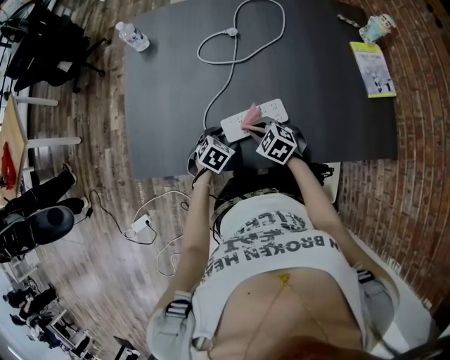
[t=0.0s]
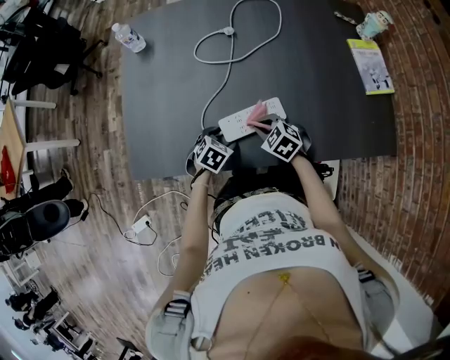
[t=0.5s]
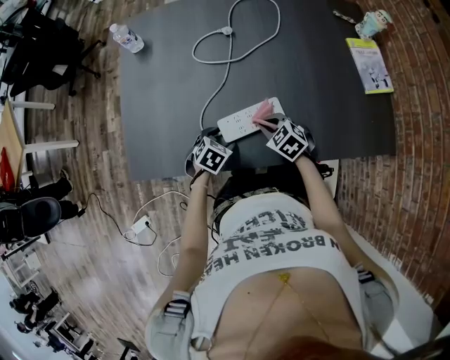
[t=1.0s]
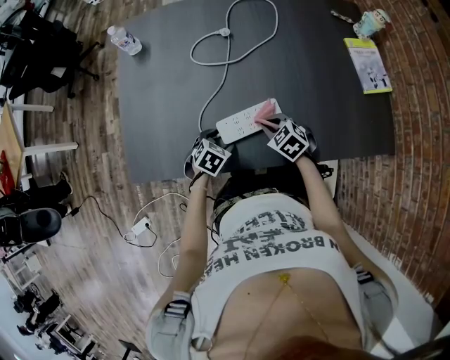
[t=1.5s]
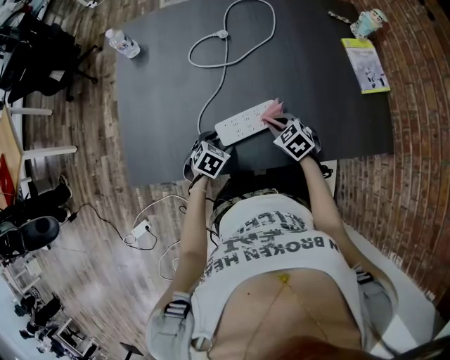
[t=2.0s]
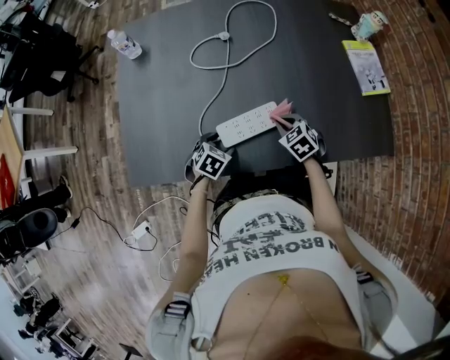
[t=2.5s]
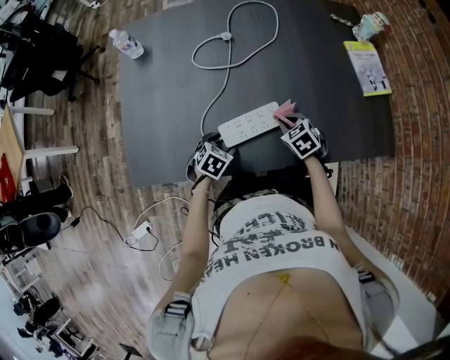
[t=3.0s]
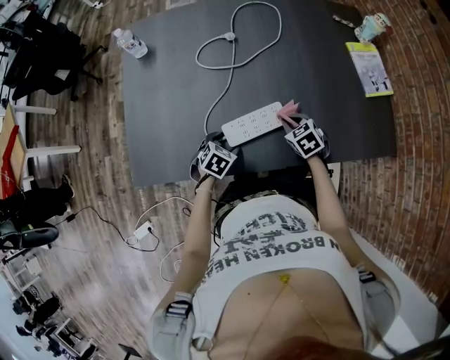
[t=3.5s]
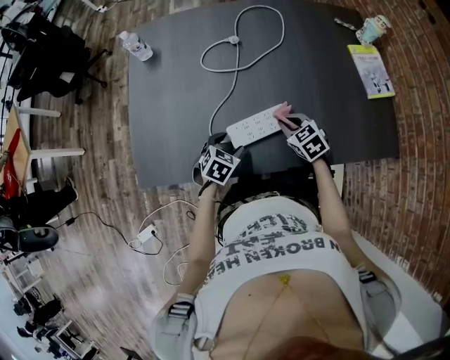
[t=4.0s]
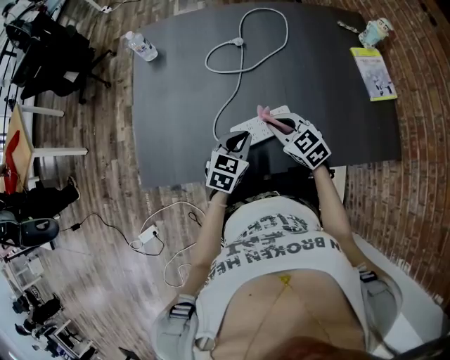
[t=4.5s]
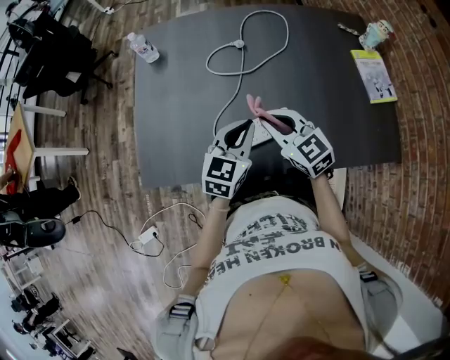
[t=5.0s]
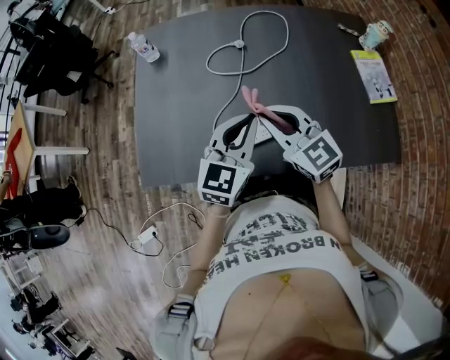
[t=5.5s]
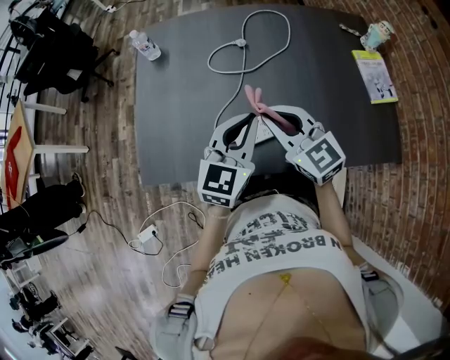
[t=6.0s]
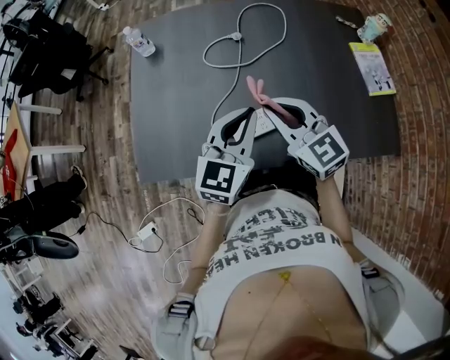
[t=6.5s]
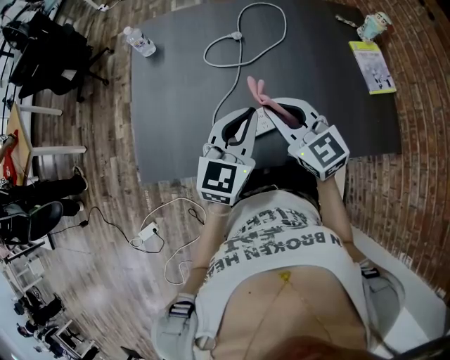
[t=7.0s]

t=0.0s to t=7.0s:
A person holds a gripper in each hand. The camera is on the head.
t=0.0s to t=2.0s: The right gripper goes about 10 cm to the right.
t=2.0s to t=3.5s: The grippers make only small movements.
t=3.5s to t=5.0s: The right gripper shifts roughly 25 cm upward and to the left, and tips its fingers upward by some 40 degrees. Meanwhile the left gripper moves upward, about 25 cm, tips its fingers upward by about 40 degrees, and closes up.
t=5.0s to t=7.0s: The two grippers go some 5 cm upward.

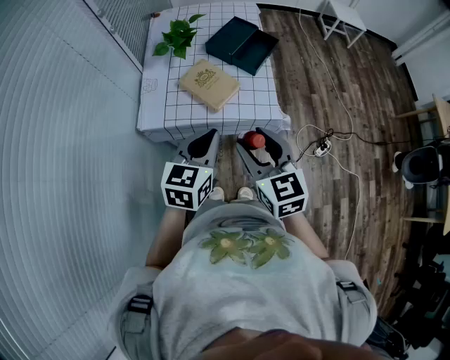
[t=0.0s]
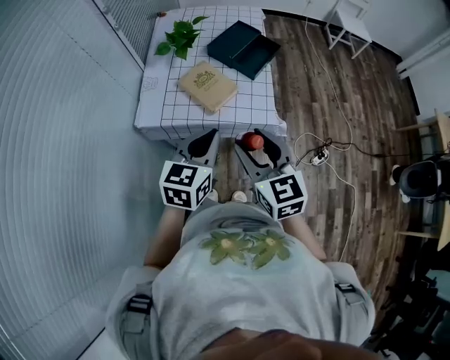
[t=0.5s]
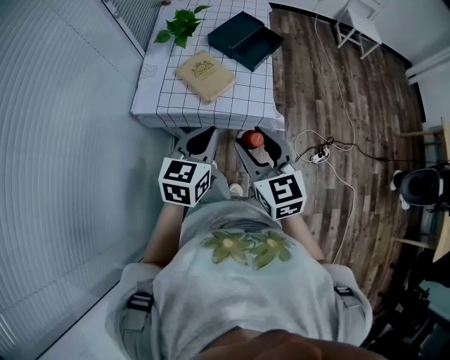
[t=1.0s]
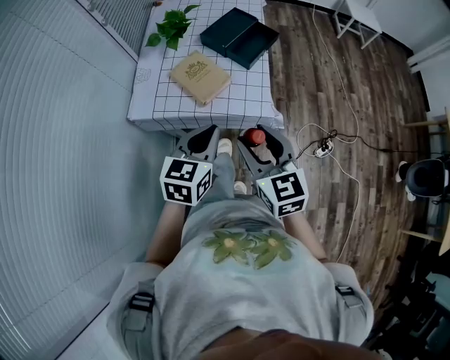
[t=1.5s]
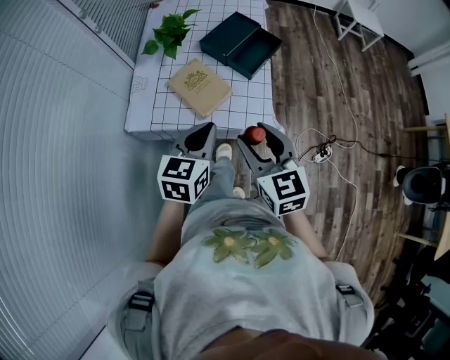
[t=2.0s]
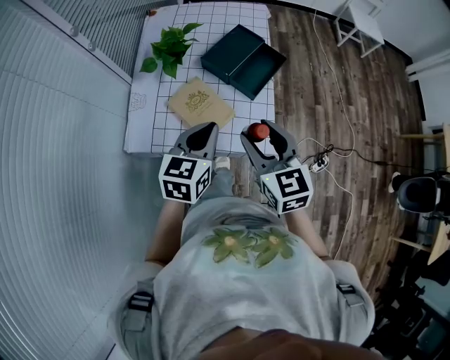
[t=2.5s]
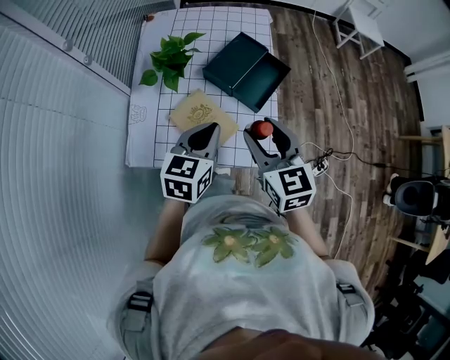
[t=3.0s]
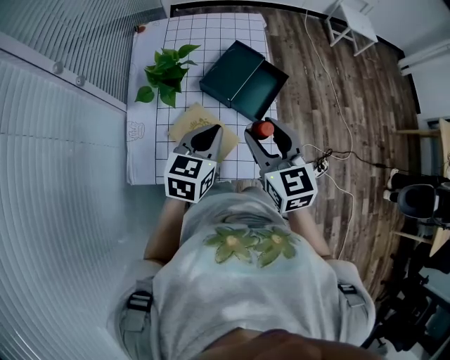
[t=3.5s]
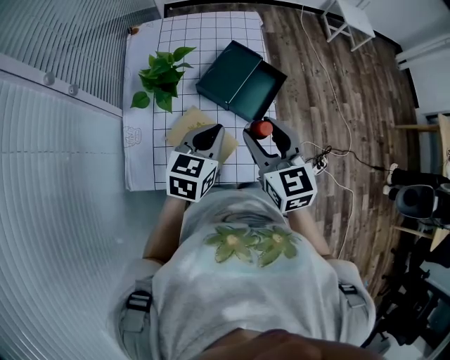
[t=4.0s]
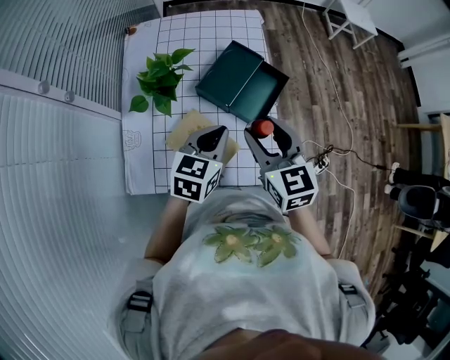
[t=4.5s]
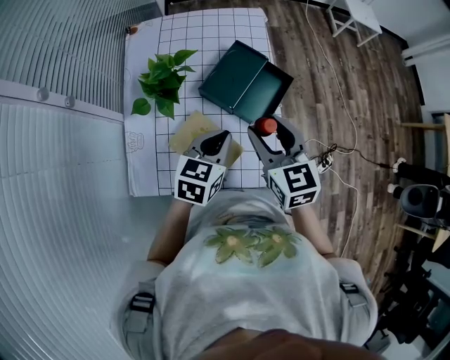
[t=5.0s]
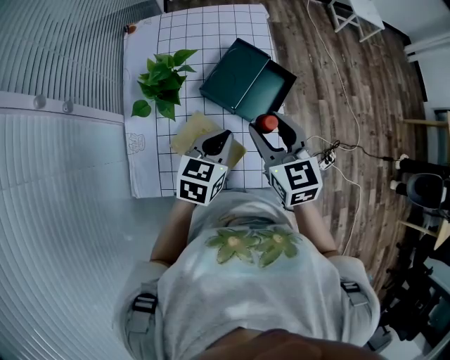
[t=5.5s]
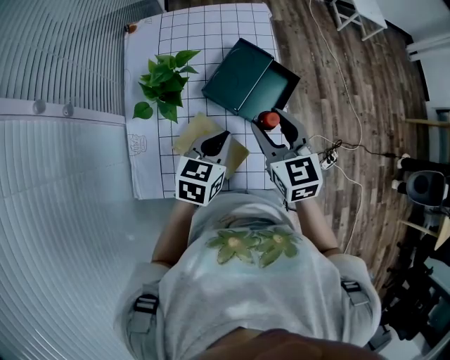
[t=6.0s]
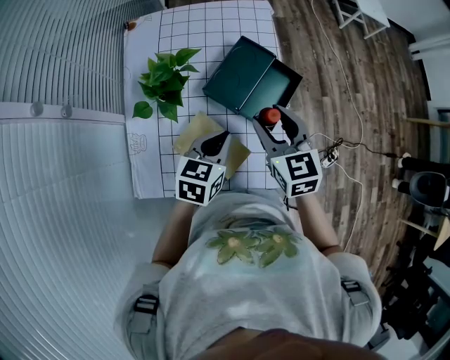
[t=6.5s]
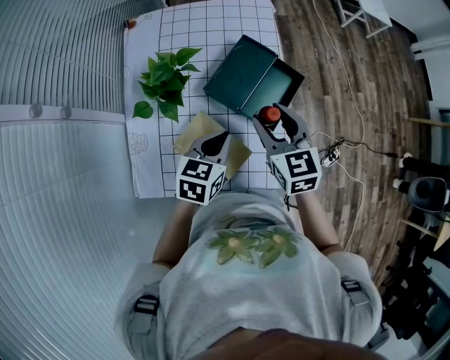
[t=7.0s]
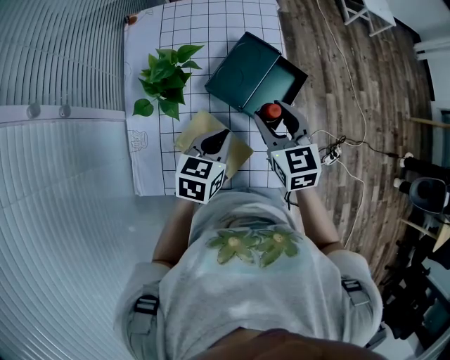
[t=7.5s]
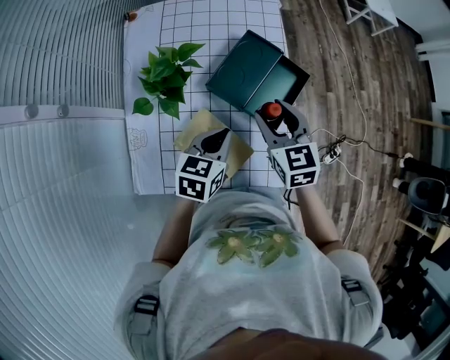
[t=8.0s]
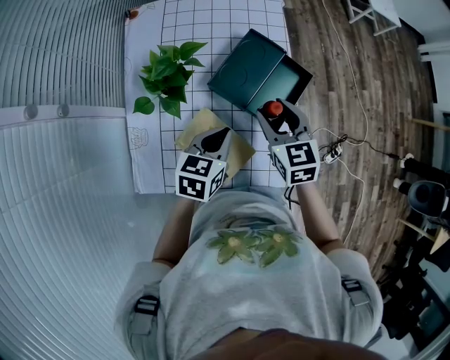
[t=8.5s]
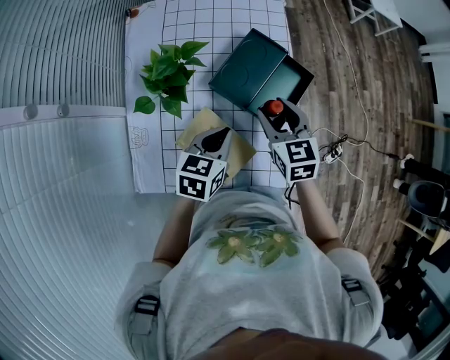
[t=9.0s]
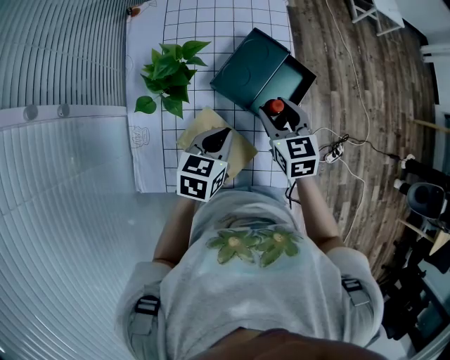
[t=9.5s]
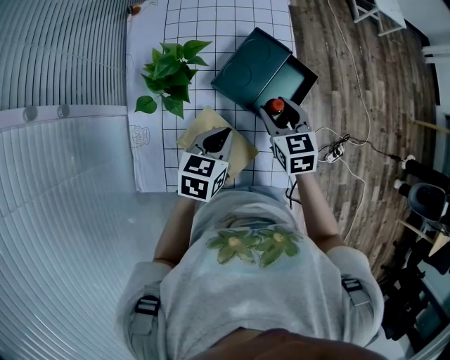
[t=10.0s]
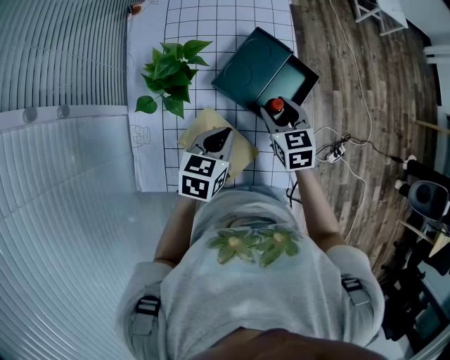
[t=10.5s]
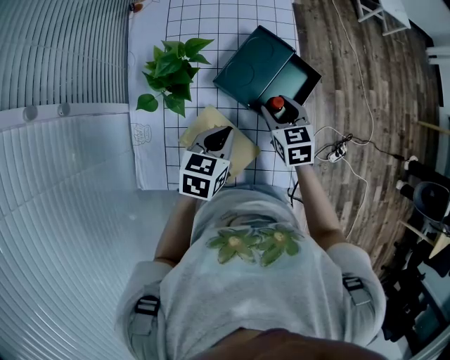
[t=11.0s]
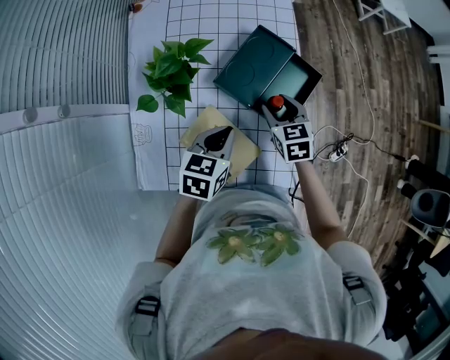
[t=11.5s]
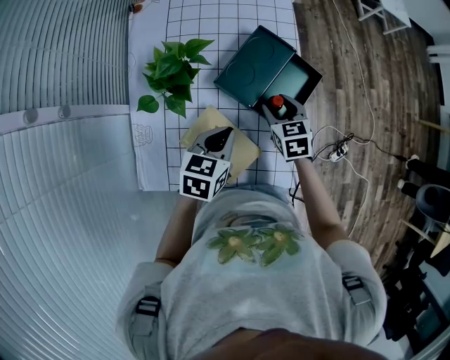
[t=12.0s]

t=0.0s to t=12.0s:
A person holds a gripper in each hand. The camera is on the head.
t=0.0s to t=2.0s: The grippers both shift forward and to the right by roughly 10 cm.
t=2.0s to t=4.0s: The grippers both shift forward by about 25 cm.
t=4.0s to t=6.0s: The right gripper shifts some 10 cm forward. Meanwhile the left gripper is displaced downward by some 5 cm.
t=6.0s to t=8.0s: The right gripper is displaced downward by roughly 5 cm.
t=8.0s to t=10.0s: The right gripper moves downward, approximately 5 cm.
t=10.0s to t=12.0s: The right gripper shifts some 5 cm downward.

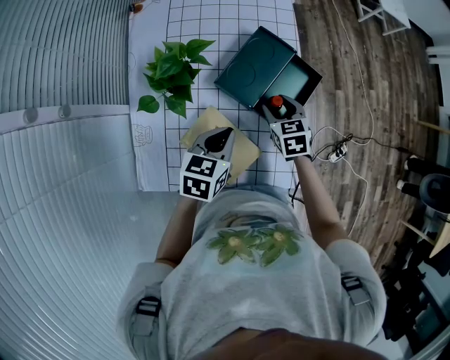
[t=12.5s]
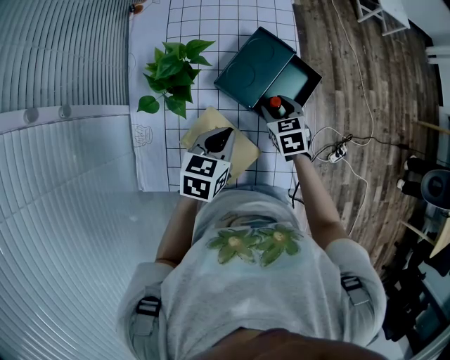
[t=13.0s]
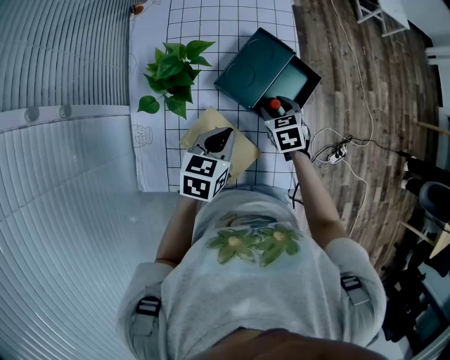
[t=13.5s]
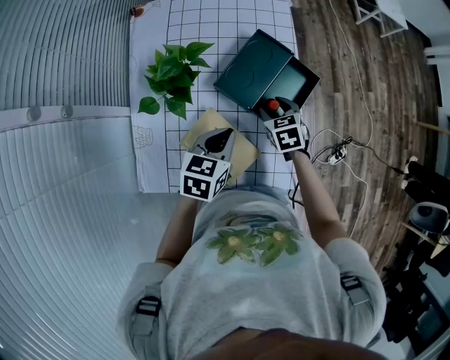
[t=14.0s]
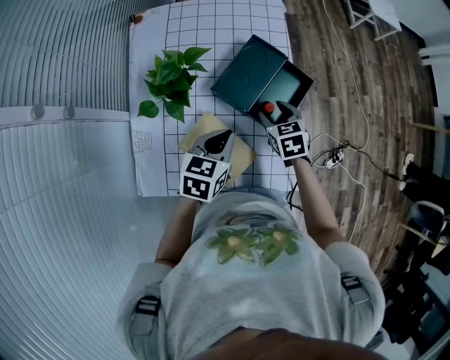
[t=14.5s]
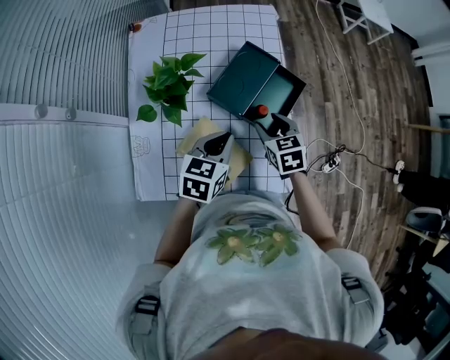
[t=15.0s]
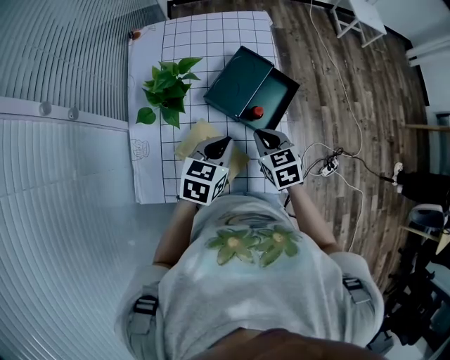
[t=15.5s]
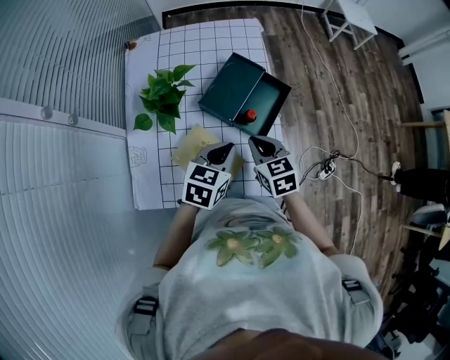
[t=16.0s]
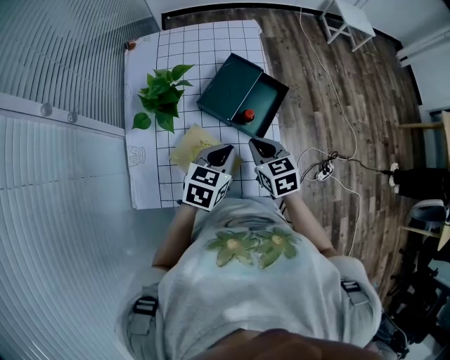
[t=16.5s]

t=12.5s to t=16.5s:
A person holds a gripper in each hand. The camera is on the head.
t=12.5s to t=14.5s: The grippers stay close to where they were, moving slightly.
t=14.5s to t=16.5s: The left gripper shifts about 5 cm to the right, while the right gripper goes some 10 cm backward and upward, and closes up.

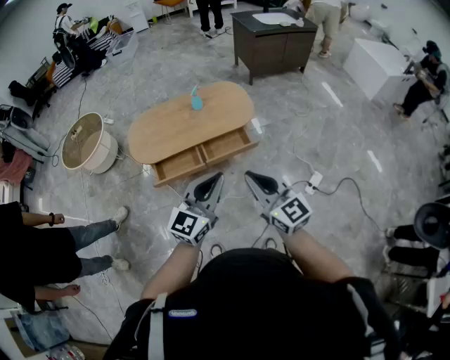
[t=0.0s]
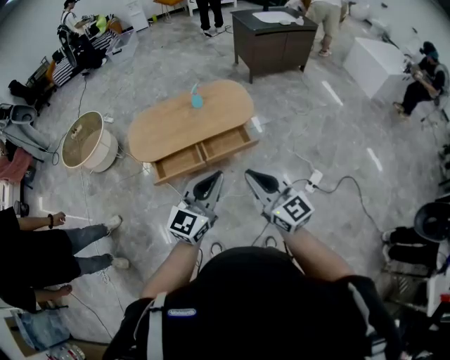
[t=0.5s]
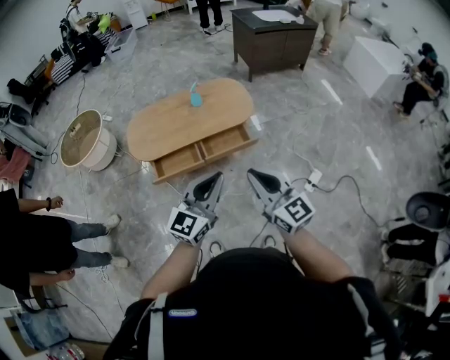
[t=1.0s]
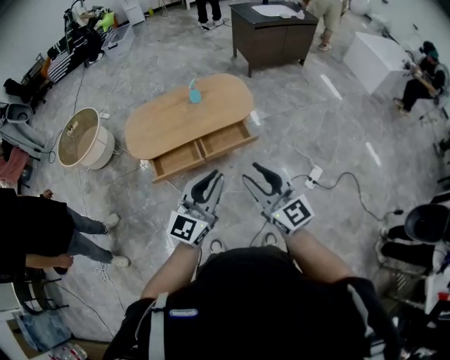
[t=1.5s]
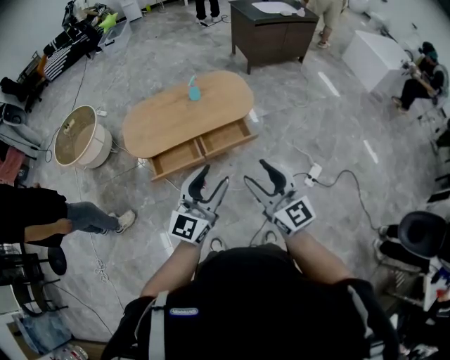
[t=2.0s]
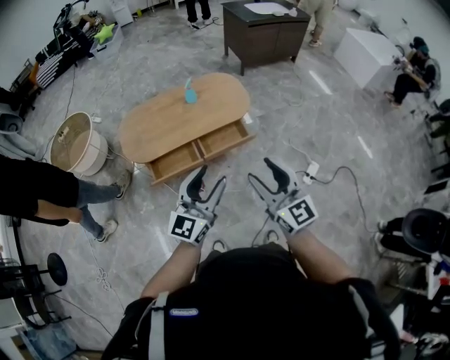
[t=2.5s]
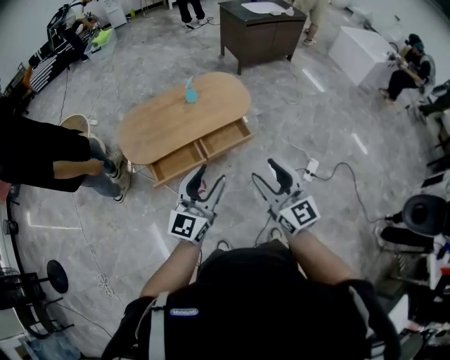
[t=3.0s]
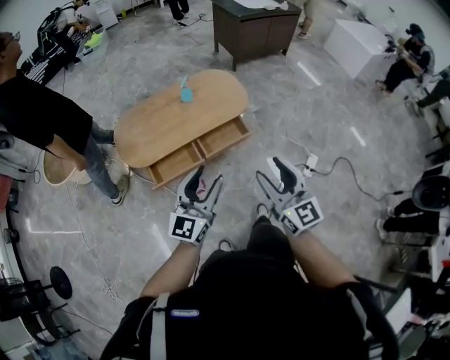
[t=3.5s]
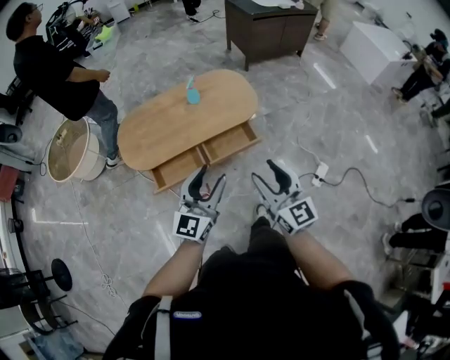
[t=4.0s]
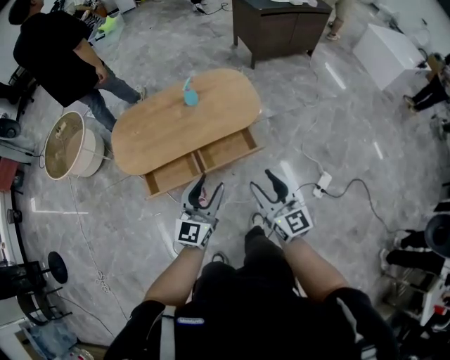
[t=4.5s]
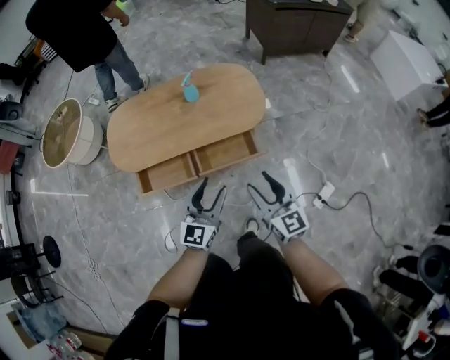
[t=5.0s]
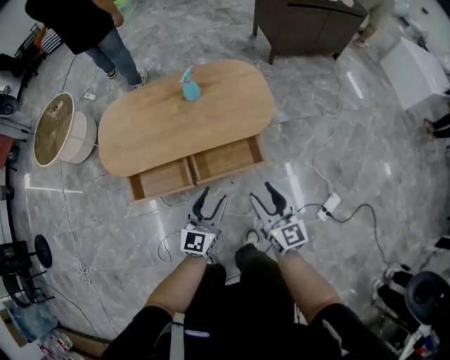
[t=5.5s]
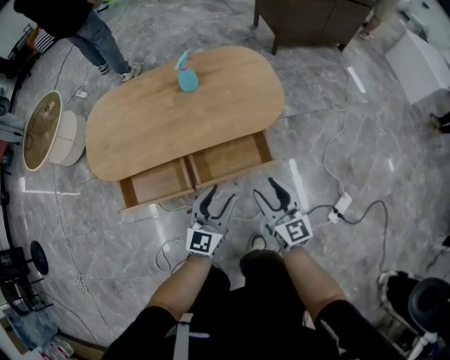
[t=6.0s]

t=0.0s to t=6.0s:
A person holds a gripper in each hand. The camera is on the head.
t=0.0s to t=2.0s: The left gripper opens; the right gripper opens up.
t=2.0s to t=4.0s: The right gripper goes roughly 10 cm forward and downward. The left gripper travels forward, downward and to the left by some 15 cm.
t=4.0s to t=6.0s: Both grippers move downward and forward, some 40 cm.
